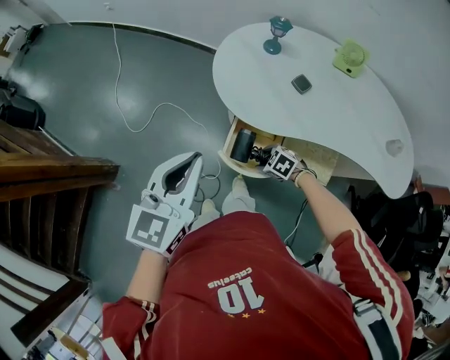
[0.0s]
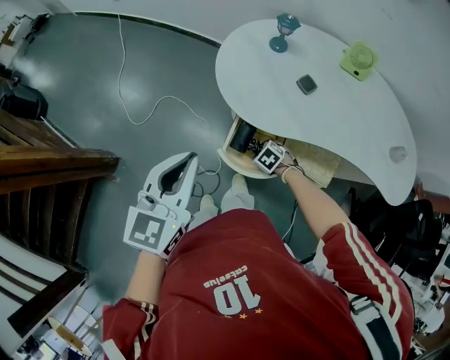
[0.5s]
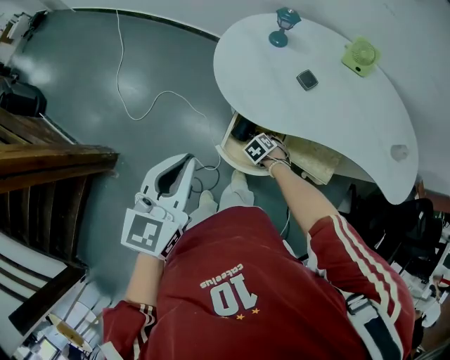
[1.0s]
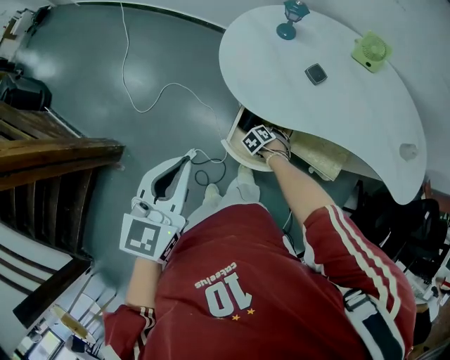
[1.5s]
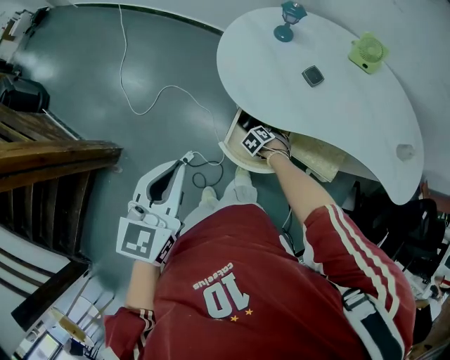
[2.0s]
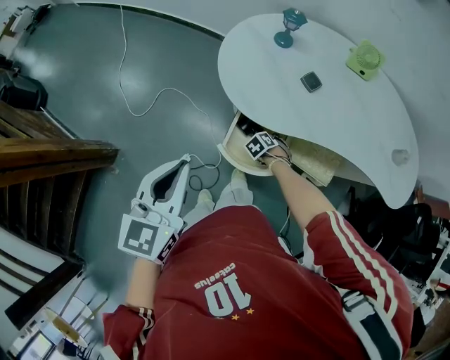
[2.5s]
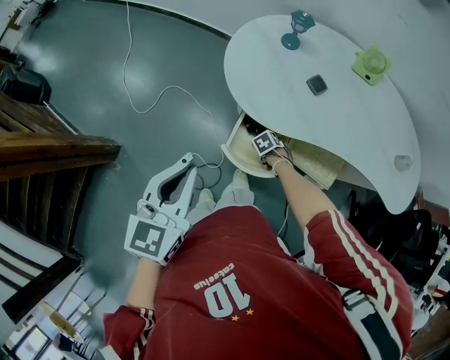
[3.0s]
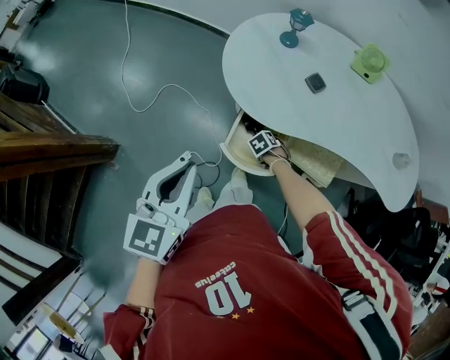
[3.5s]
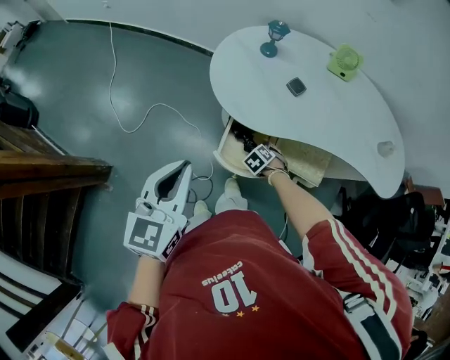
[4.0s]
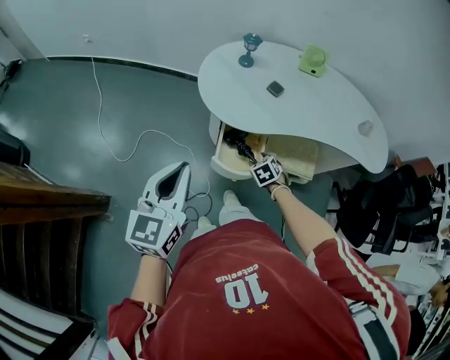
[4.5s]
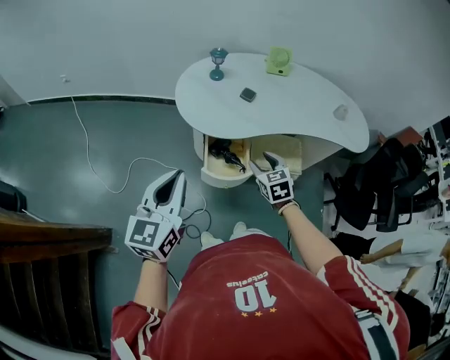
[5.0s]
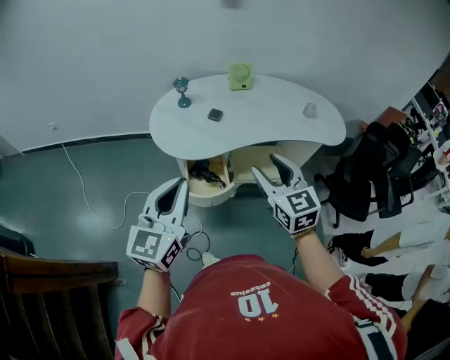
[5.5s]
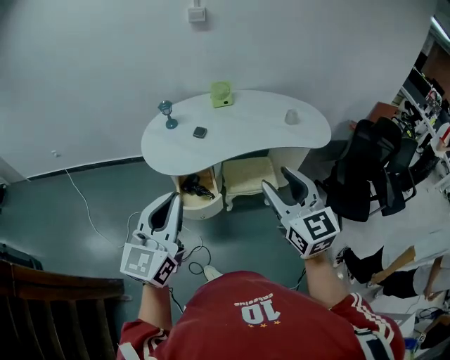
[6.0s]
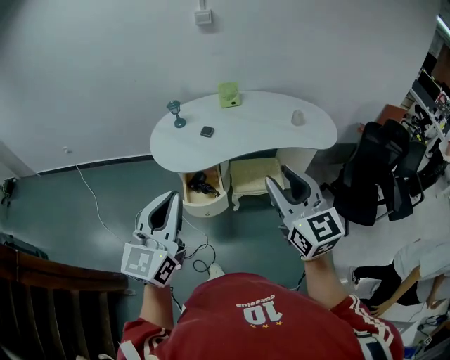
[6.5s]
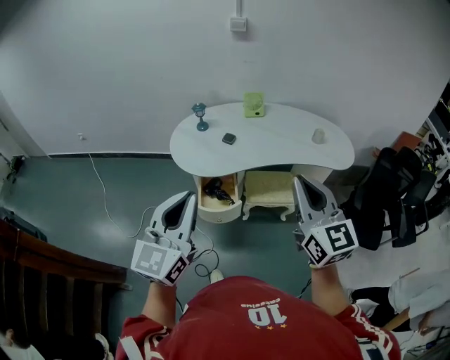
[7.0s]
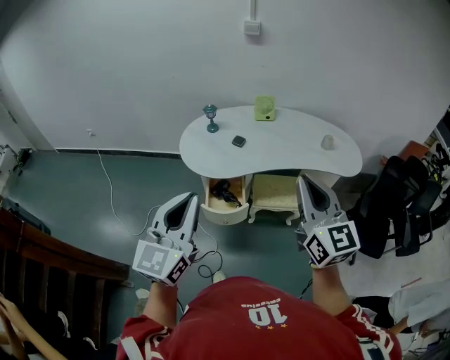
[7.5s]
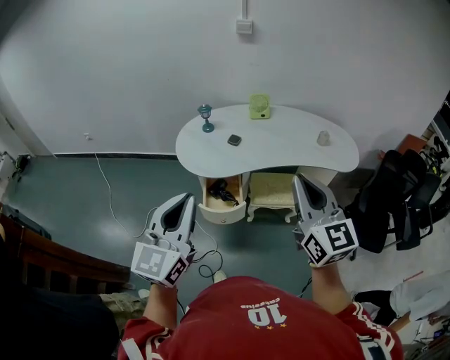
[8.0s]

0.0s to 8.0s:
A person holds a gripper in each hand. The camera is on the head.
0.0s to 2.0s: The right gripper travels downward by about 10 cm, and turns by about 30 degrees.
2.0s to 4.0s: The right gripper travels upward by roughly 5 cm.
4.0s to 6.0s: The right gripper shifts approximately 60 cm upward, and angles its fingers upward, by about 70 degrees; the left gripper ends up some 30 cm from where it was, and rotates approximately 30 degrees.
6.0s to 8.0s: The left gripper changes place by approximately 5 cm. The right gripper moves upward, some 5 cm, and closes up.

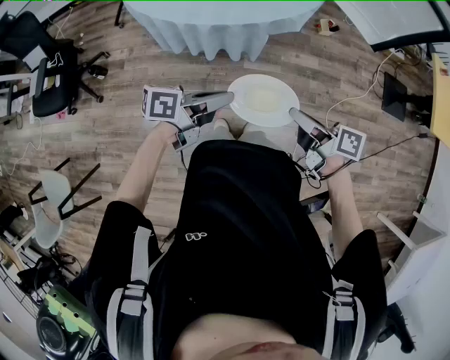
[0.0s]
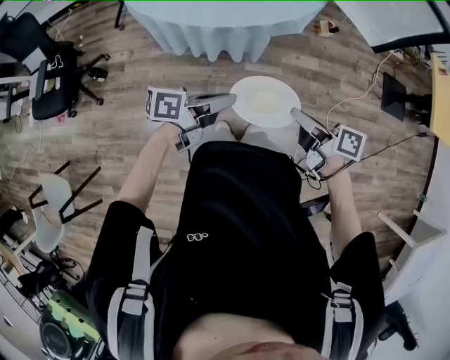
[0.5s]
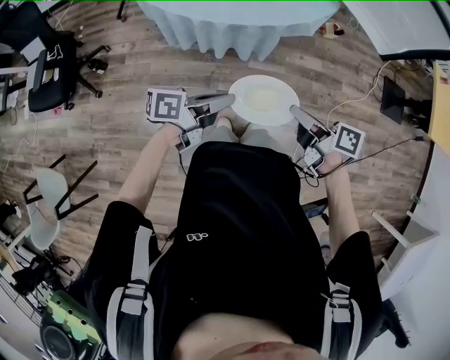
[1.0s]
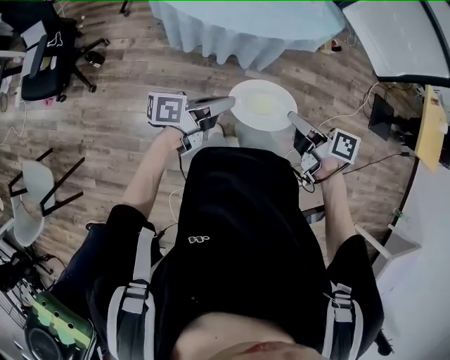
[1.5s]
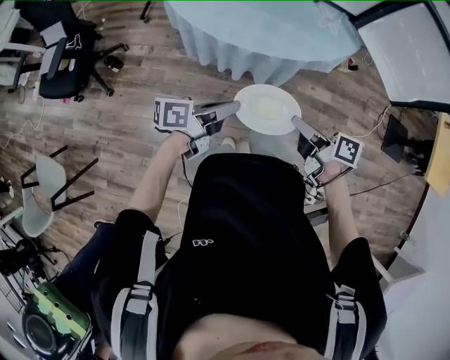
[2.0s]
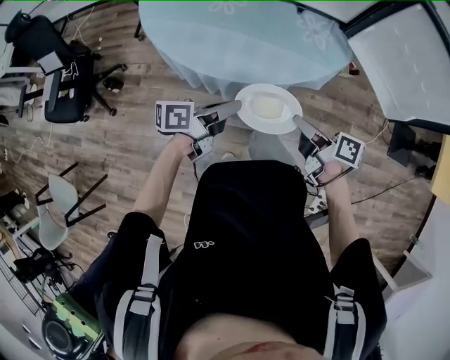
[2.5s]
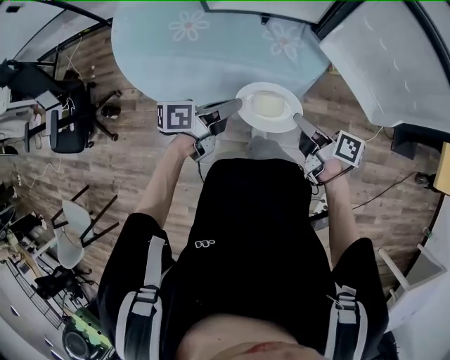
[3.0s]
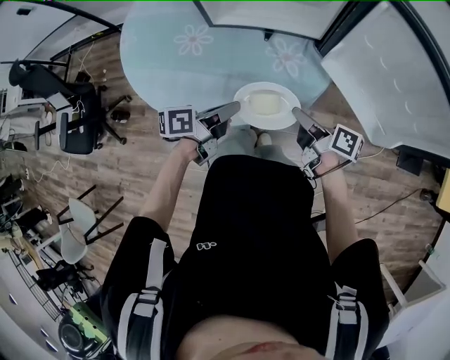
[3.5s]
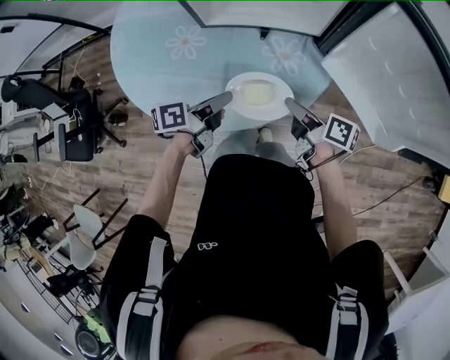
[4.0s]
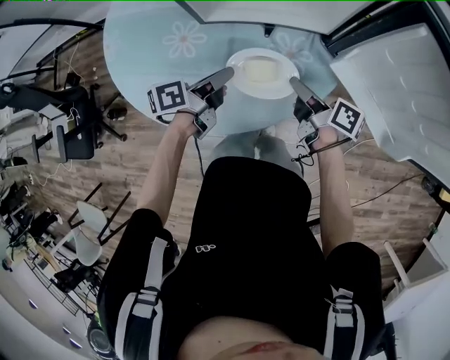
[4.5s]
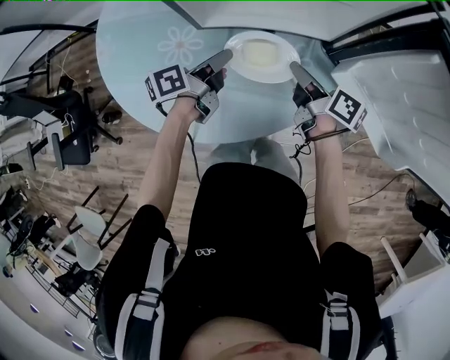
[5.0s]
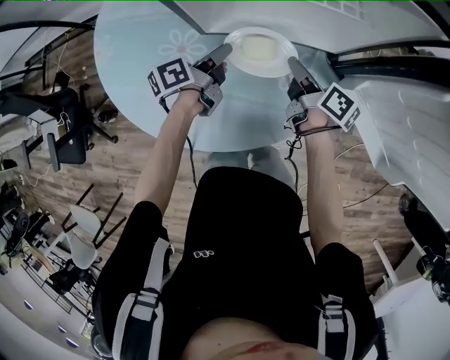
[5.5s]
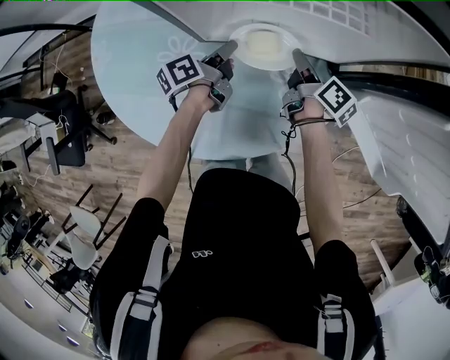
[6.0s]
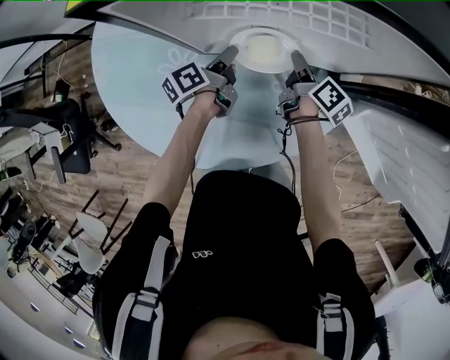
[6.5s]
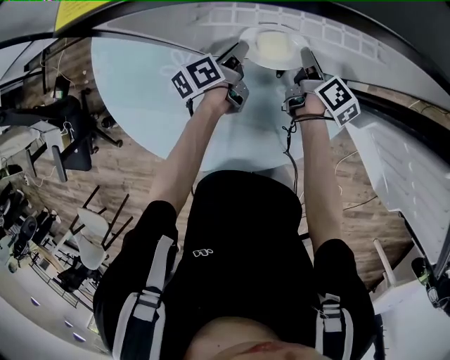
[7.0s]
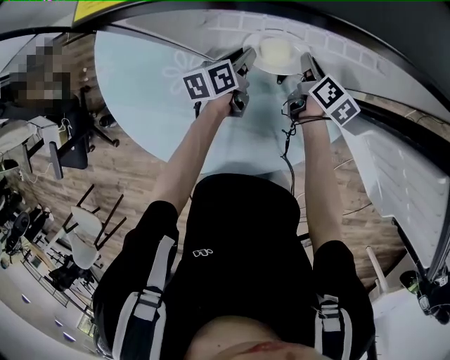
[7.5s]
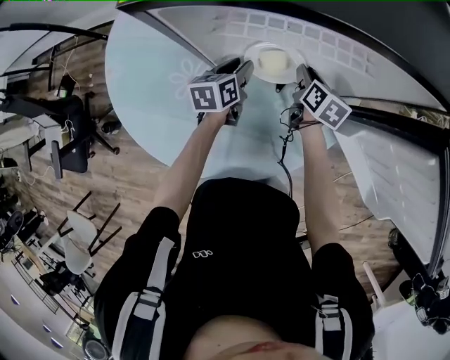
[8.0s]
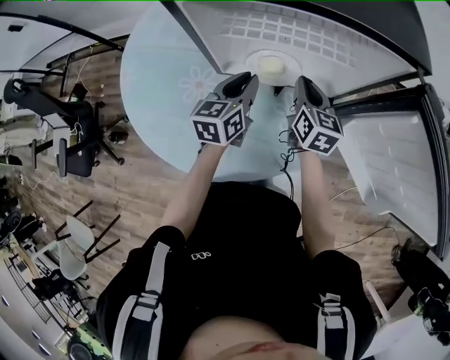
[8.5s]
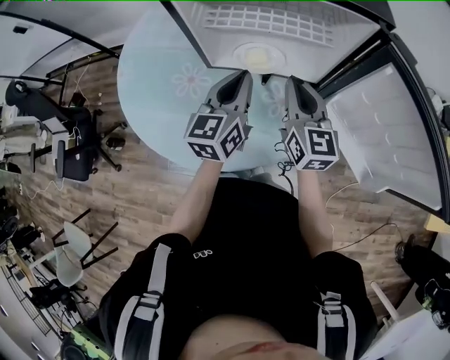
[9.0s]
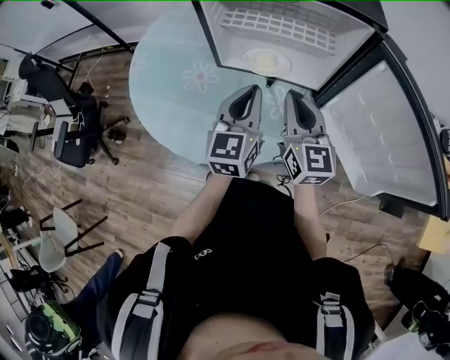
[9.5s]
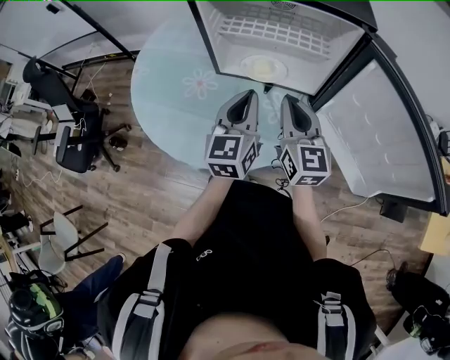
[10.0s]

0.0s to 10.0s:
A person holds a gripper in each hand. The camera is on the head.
0.0s to 2.0s: Both grippers move to the left and forward, approximately 15 cm.
2.0s to 4.0s: The grippers both shift forward by about 30 cm.
4.0s to 6.0s: The grippers both shift forward by roughly 25 cm. The right gripper turns by roughly 20 degrees.
6.0s to 8.0s: The left gripper rotates roughly 40 degrees, and opens its fingers; the right gripper heads forward, covering about 5 cm, turns by roughly 40 degrees, and opens.
8.0s to 10.0s: Both grippers travel together upward and backward, about 30 cm. The right gripper points its fingers roughly 30 degrees further upward, and closes its fingers; the left gripper rotates some 40 degrees, and closes.

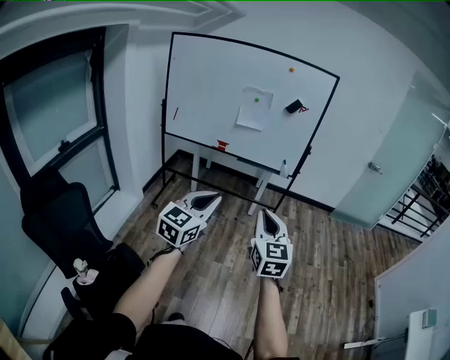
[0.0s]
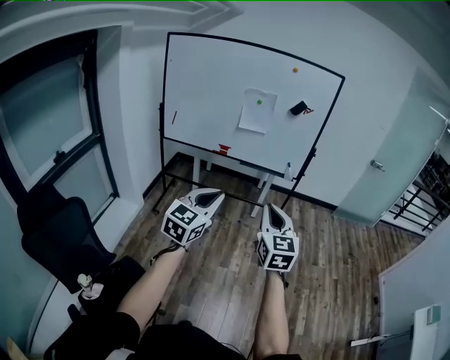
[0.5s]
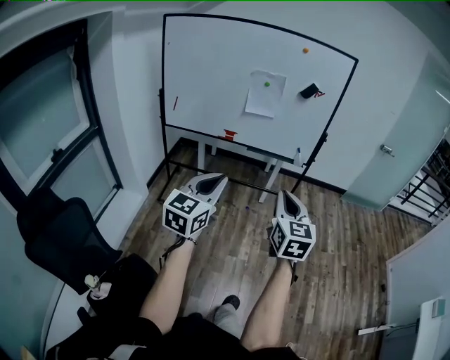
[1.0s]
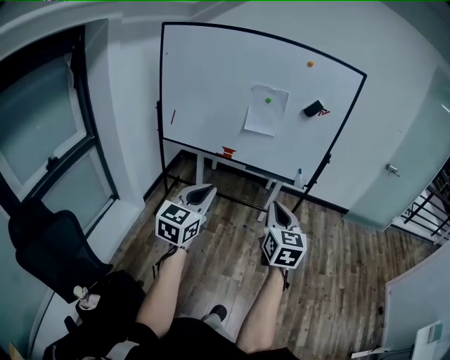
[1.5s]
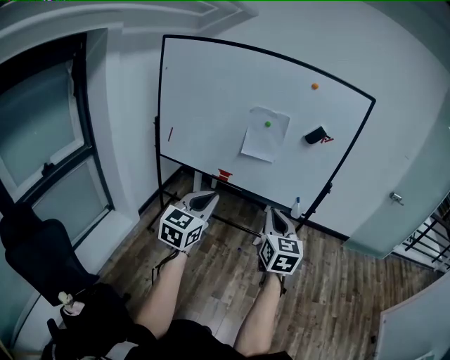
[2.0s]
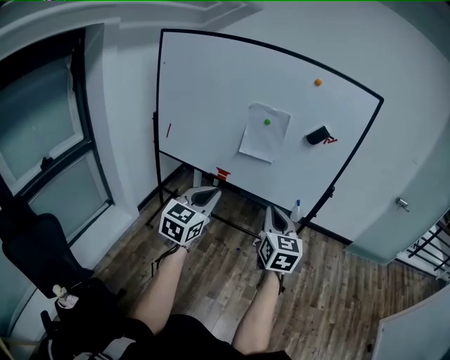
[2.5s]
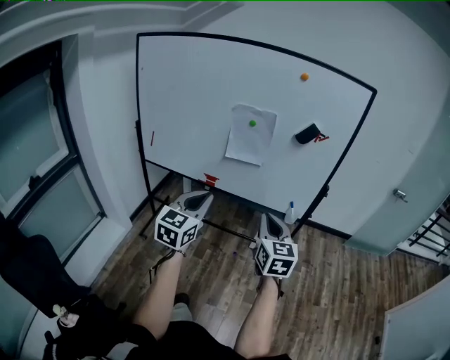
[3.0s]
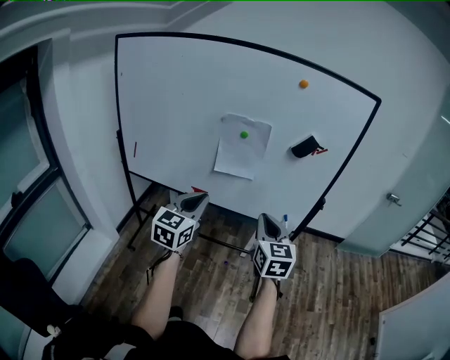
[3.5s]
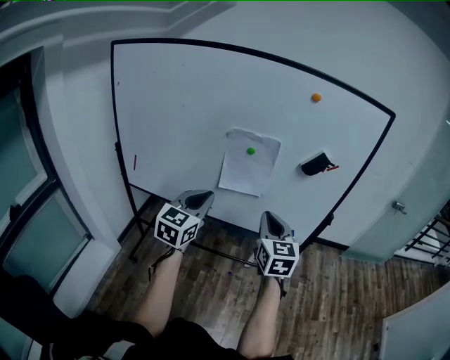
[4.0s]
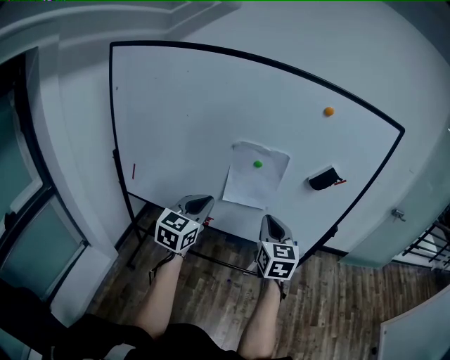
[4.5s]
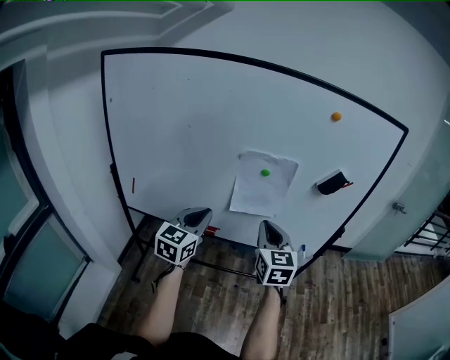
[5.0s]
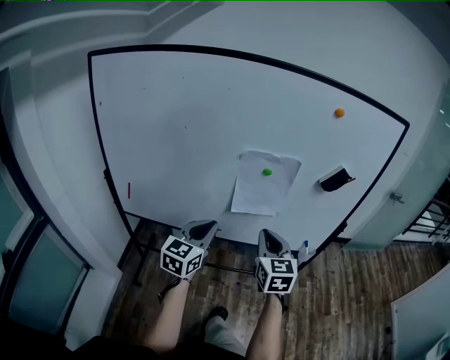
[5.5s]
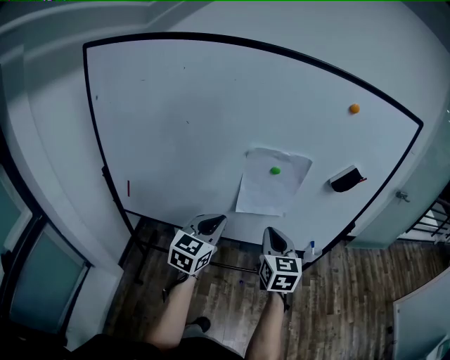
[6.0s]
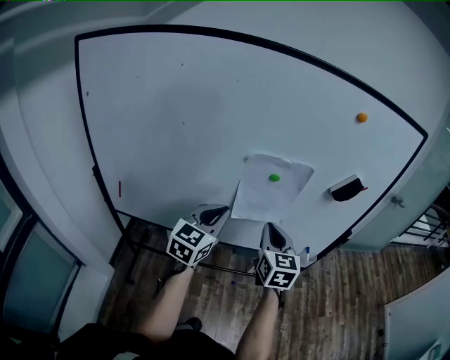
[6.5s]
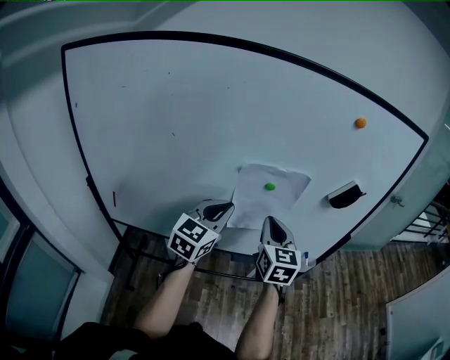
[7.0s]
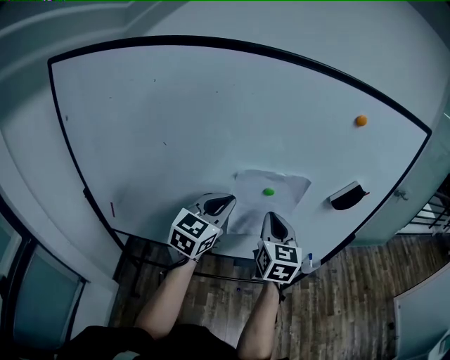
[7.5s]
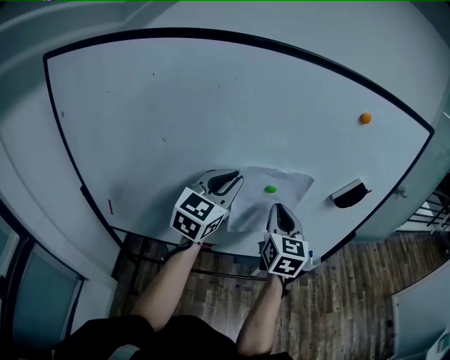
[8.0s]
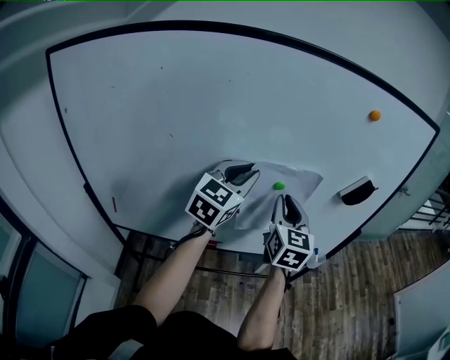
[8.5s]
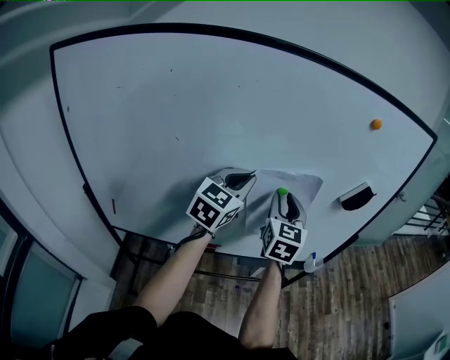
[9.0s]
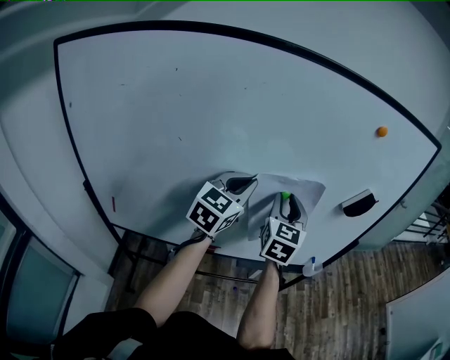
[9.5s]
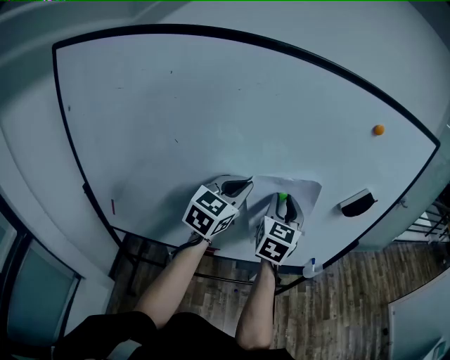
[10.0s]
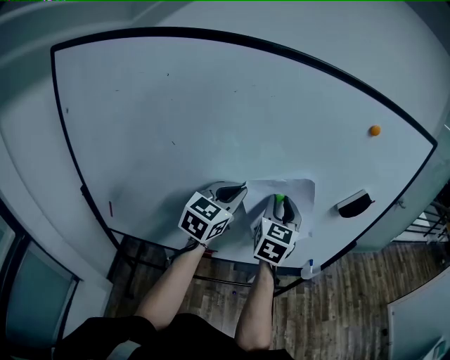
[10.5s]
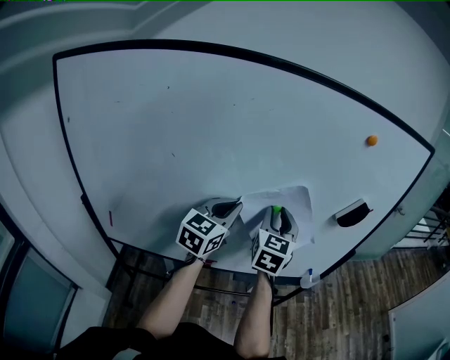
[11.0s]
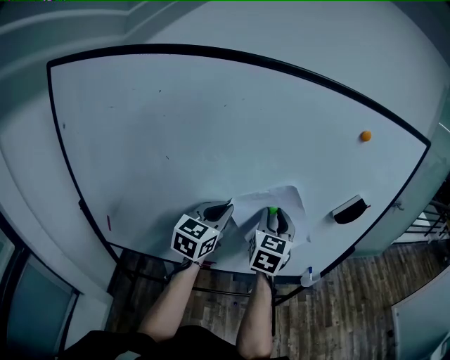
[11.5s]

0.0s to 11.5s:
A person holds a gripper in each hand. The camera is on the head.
0.0s to 2.0s: Both grippers travel together forward, roughly 35 cm.
2.0s to 4.0s: Both grippers travel together forward, some 30 cm.
4.0s to 6.0s: The left gripper moves forward, to the left and downward, some 15 cm, while the right gripper travels to the left, forward and downward by roughly 15 cm.
6.0s to 7.5s: The grippers both shift forward and upward by roughly 15 cm.
7.5s to 9.5s: The right gripper changes place by about 5 cm, and opens; the left gripper ends up roughly 5 cm from where it was.
9.5s to 11.5s: The left gripper ends up some 5 cm from where it was.
